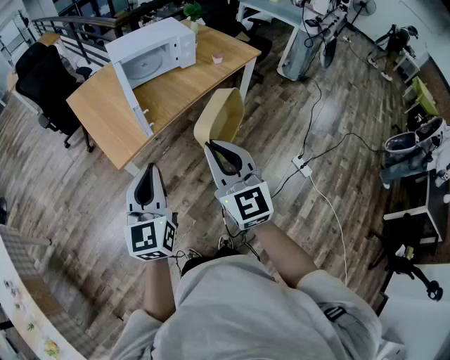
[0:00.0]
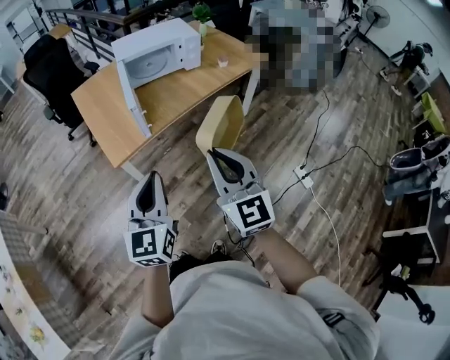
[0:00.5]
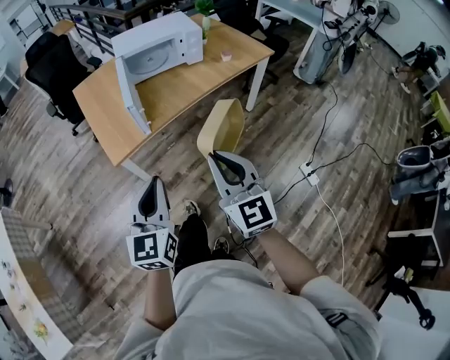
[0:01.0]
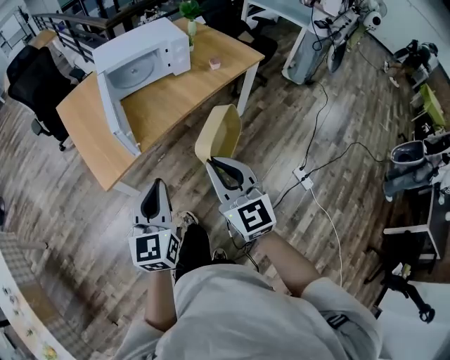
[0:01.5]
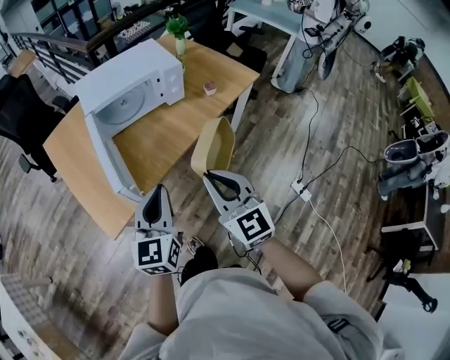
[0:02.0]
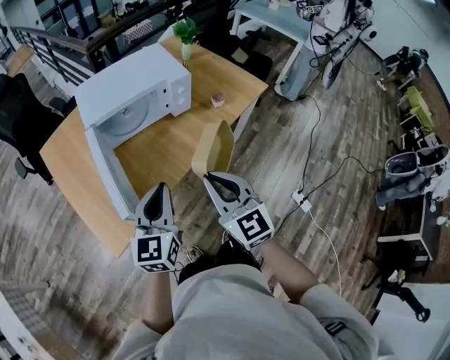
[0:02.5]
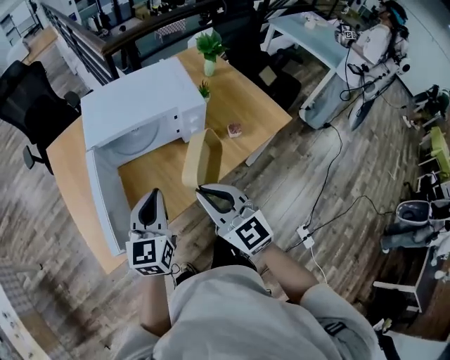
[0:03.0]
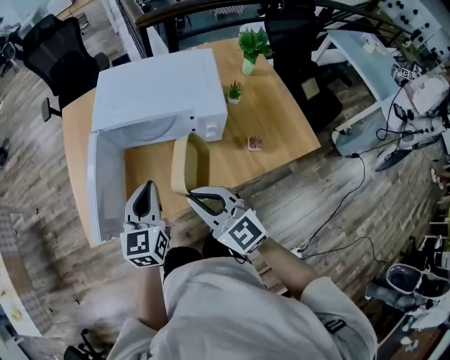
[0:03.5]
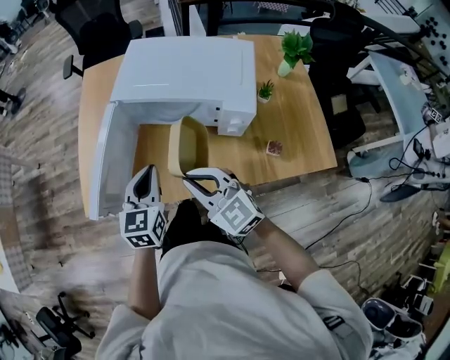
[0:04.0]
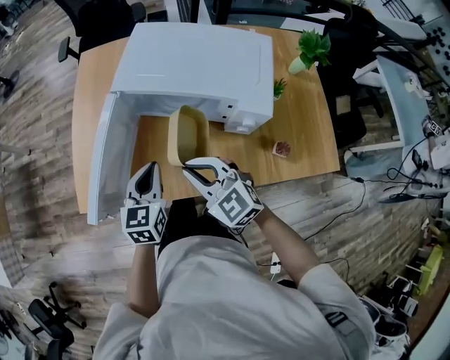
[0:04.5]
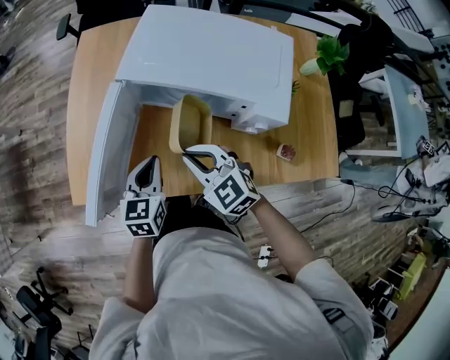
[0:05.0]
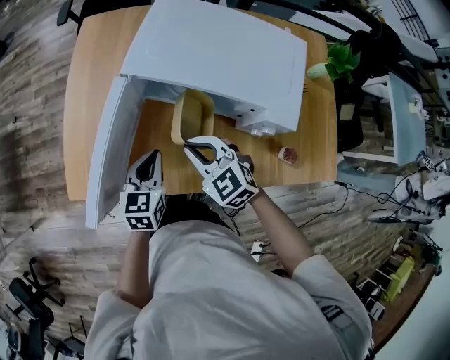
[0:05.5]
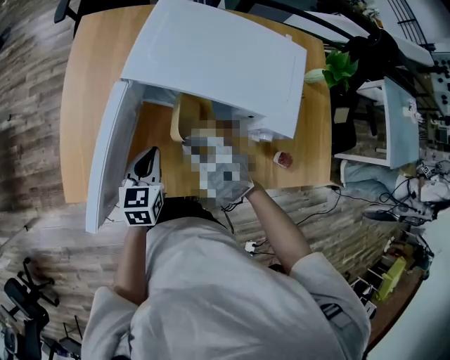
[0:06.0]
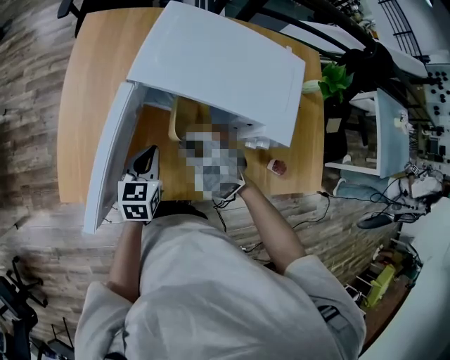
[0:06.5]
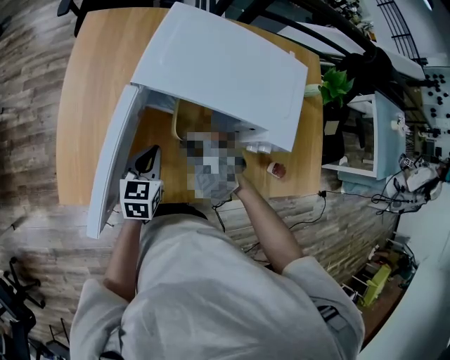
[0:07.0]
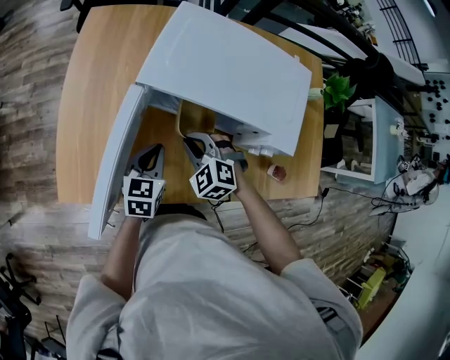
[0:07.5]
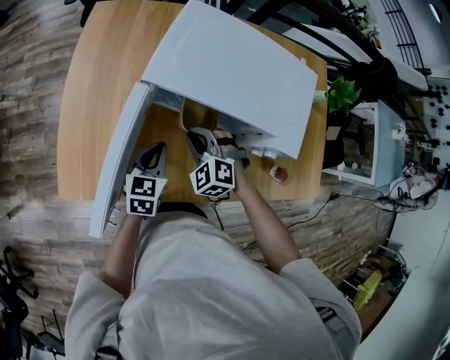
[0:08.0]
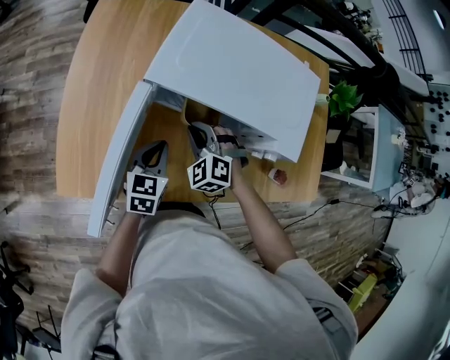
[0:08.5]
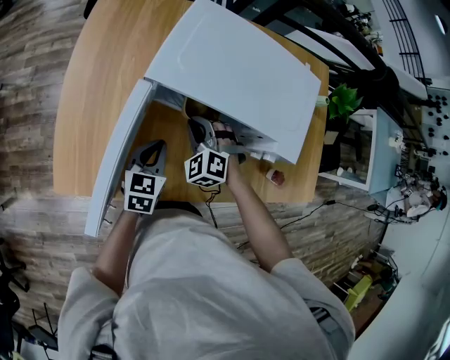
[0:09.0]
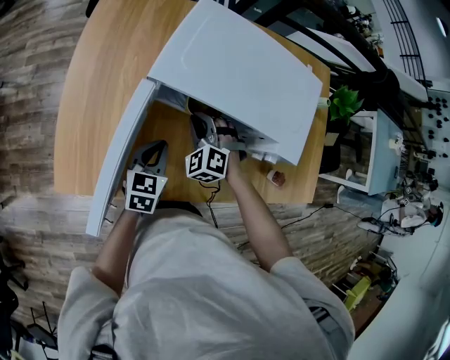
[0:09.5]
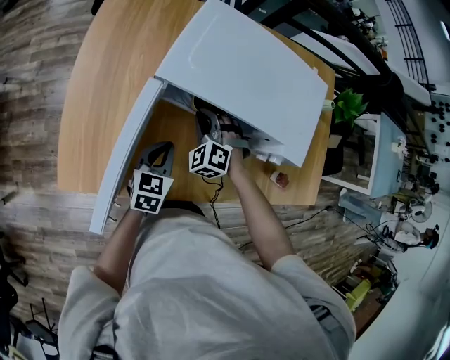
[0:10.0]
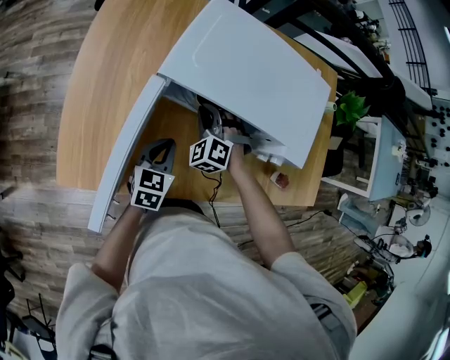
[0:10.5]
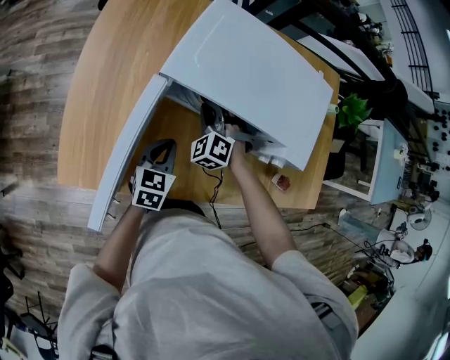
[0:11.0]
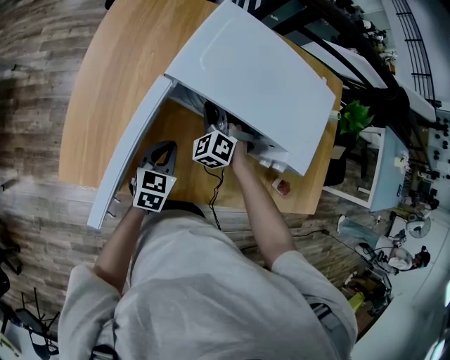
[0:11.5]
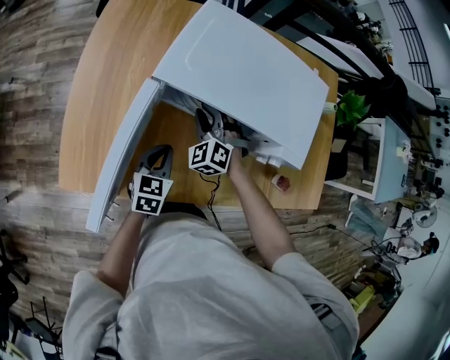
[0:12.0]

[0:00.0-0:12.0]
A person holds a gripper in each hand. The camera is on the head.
0:00.0 to 0:02.0: The two grippers go about 25 cm forward.
0:02.0 to 0:04.0: The left gripper shifts by some 25 cm, and rotates about 40 degrees, while the right gripper ends up approximately 30 cm from where it was, and turns by some 60 degrees.
0:04.0 to 0:06.0: The right gripper shifts some 20 cm forward and downward, and changes its angle by some 30 degrees; the left gripper moves downward and forward, approximately 15 cm.
0:06.0 to 0:08.0: The right gripper travels forward and downward by roughly 5 cm, and changes its angle by approximately 30 degrees.
0:08.0 to 0:10.0: The right gripper heads forward, covering about 5 cm.
0:10.0 to 0:12.0: The grippers move only a little.

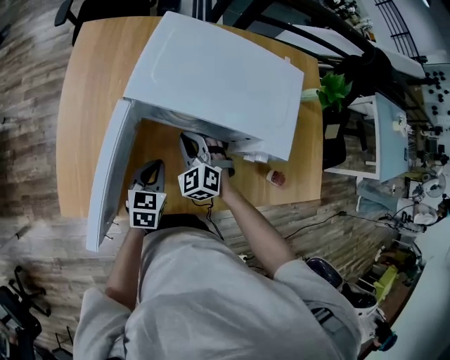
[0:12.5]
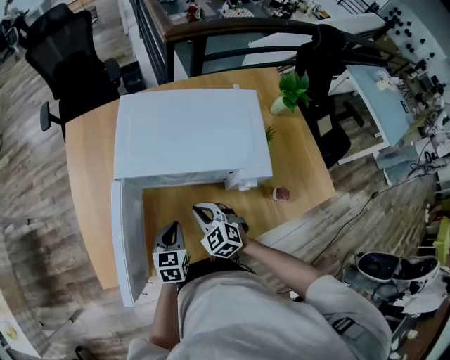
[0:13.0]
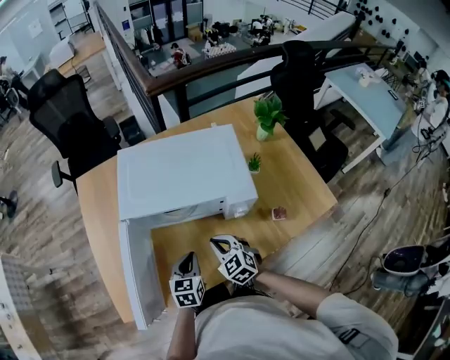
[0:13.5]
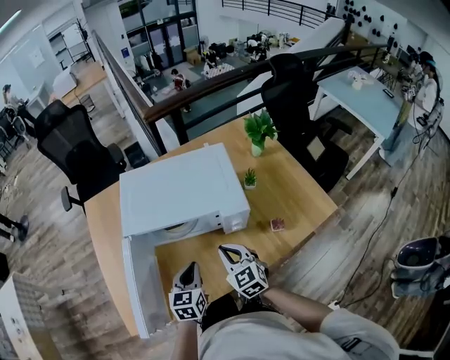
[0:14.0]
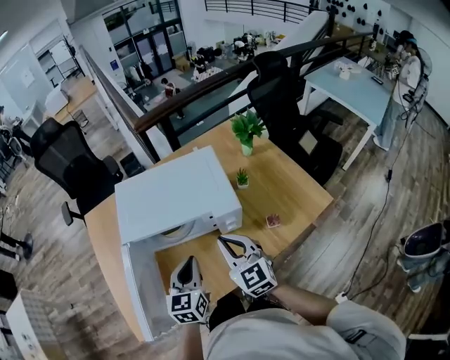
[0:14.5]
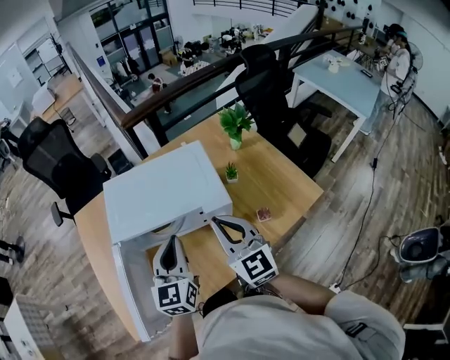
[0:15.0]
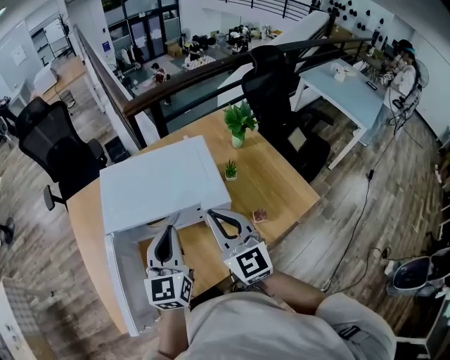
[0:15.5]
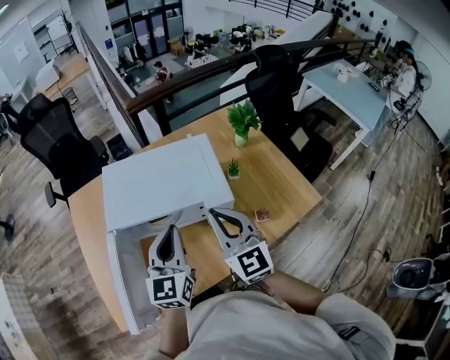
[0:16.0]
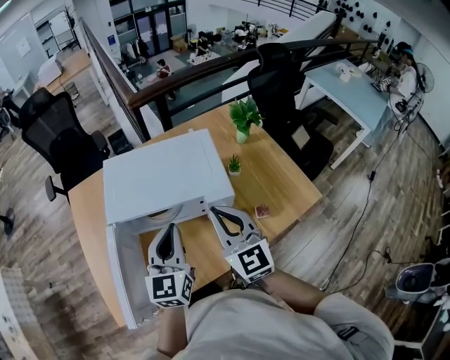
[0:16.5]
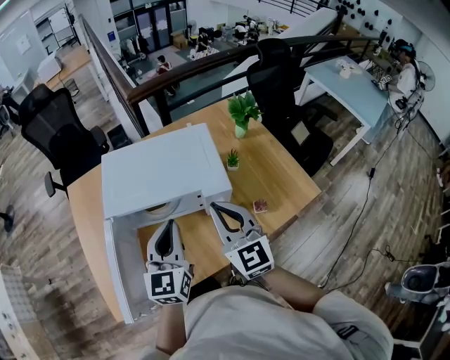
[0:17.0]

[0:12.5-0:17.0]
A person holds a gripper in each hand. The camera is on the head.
0:12.5 to 0:14.5: The left gripper heads upward and to the right, covering approximately 20 cm, and turns by about 20 degrees; the right gripper goes about 30 cm upward, to the right and backward, and changes its angle by roughly 50 degrees.
0:14.5 to 0:17.0: Both grippers travel together upward, approximately 10 cm.

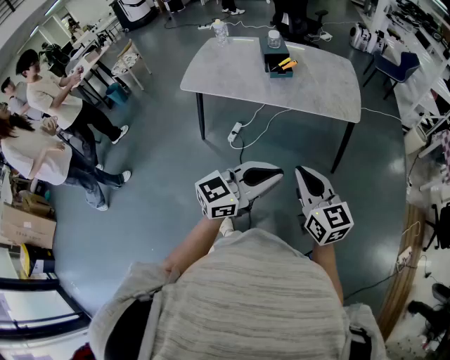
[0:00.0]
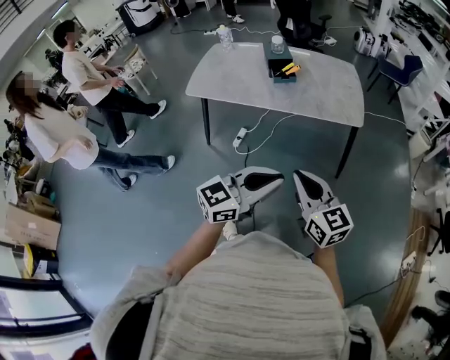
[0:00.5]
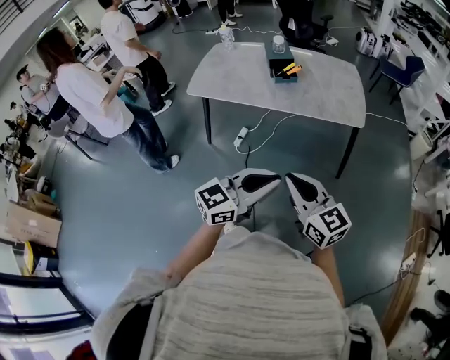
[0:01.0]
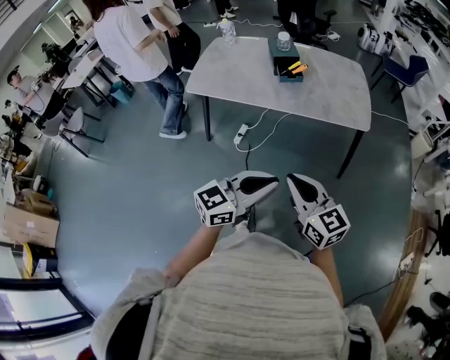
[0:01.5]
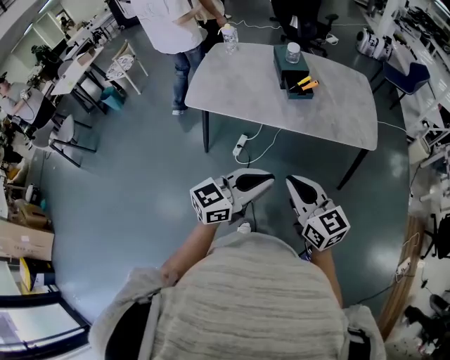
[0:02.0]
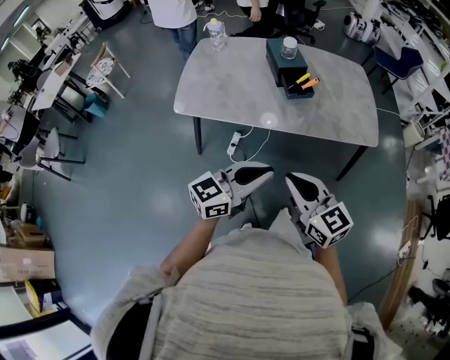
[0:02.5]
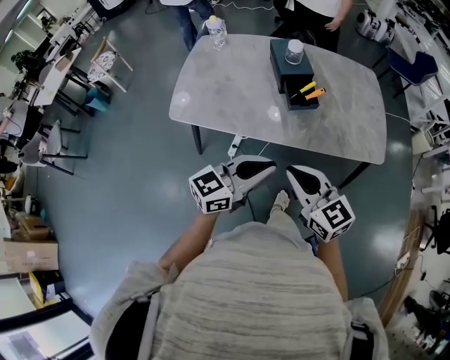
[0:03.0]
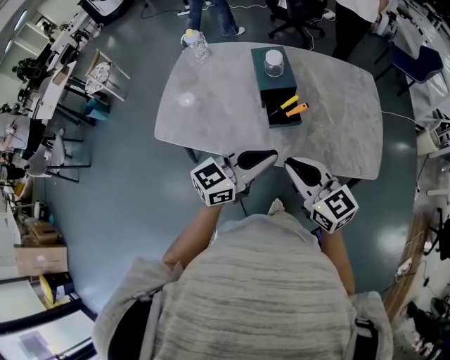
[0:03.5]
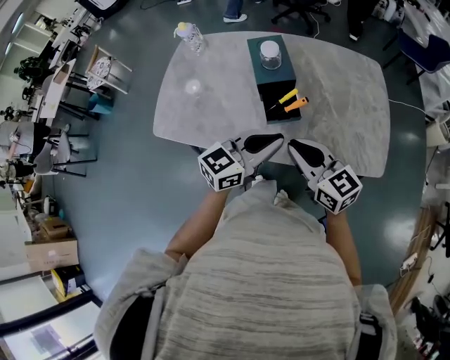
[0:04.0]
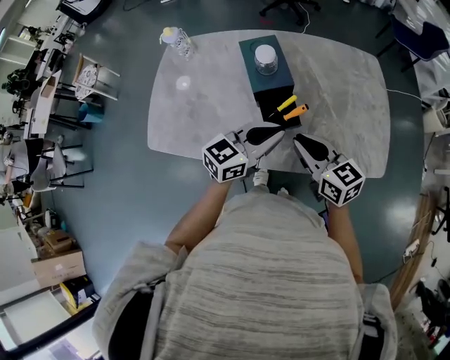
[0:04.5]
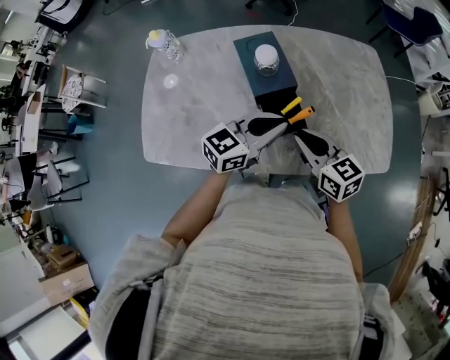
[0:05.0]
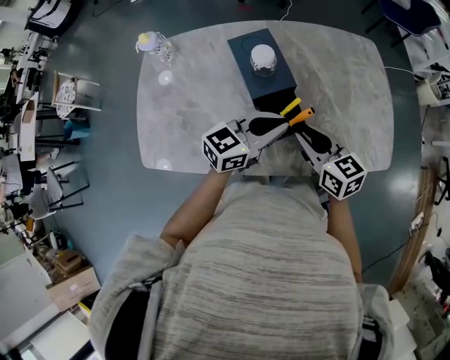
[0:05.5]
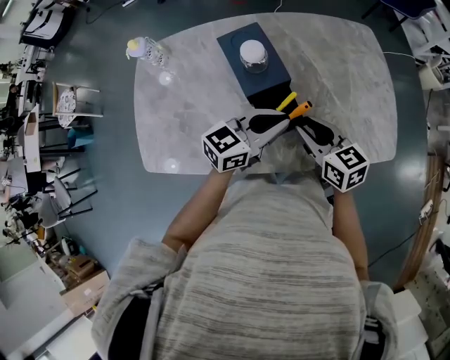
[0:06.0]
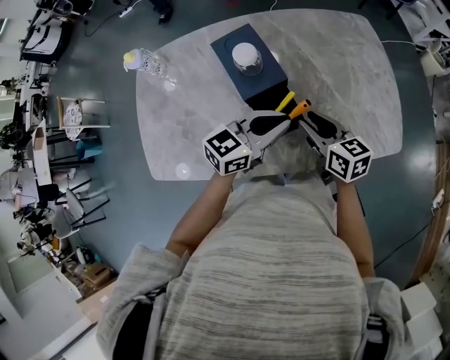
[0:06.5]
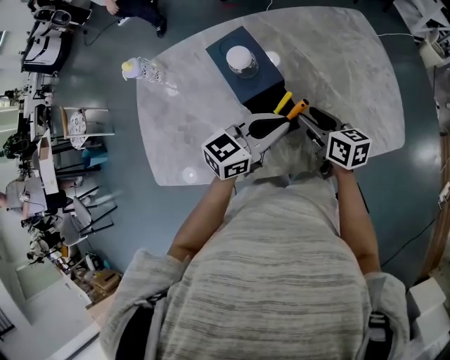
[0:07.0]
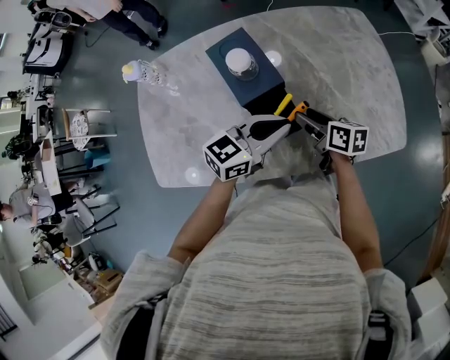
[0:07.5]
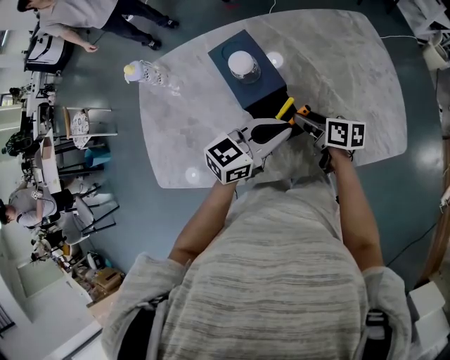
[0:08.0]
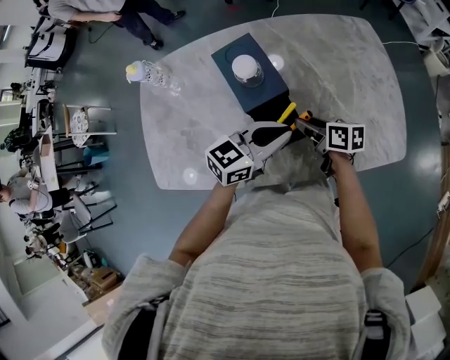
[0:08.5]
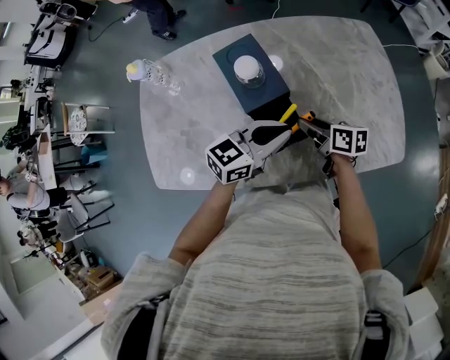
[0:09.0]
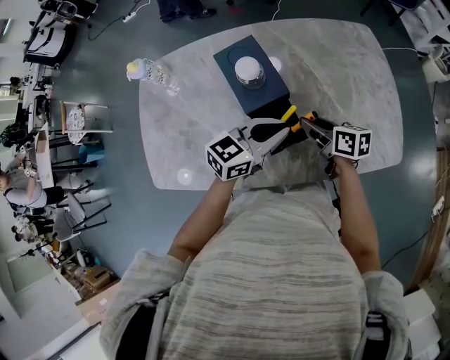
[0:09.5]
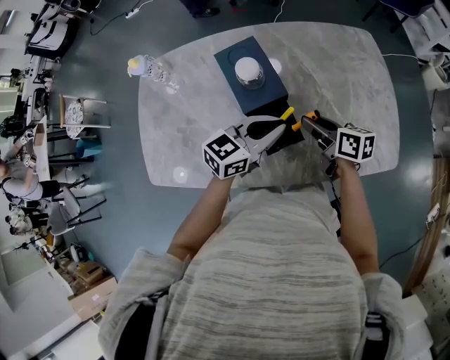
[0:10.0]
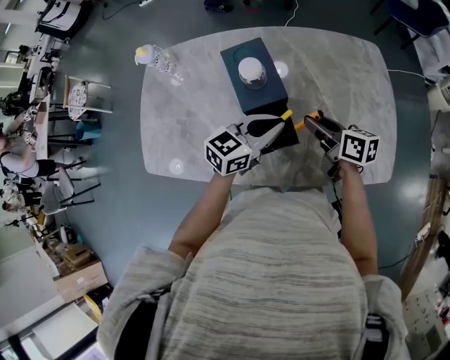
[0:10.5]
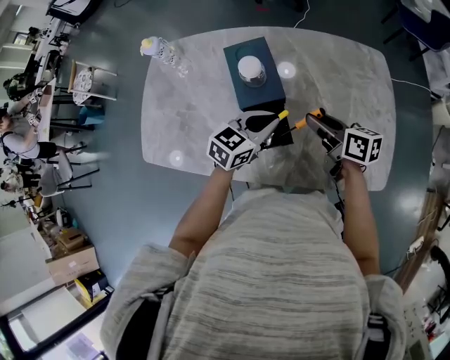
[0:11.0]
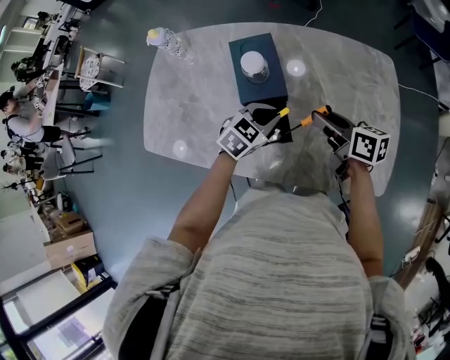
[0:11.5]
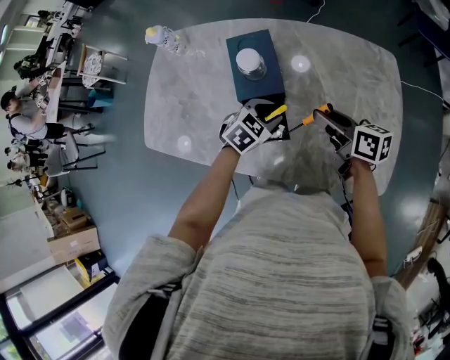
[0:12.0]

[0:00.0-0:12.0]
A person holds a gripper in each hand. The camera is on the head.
0:00.0 to 0:02.0: Both grippers travel together to the left and forward, roughly 20 cm.
0:02.0 to 0:04.0: The two grippers travel together, forward, approximately 40 cm.
0:04.0 to 0:06.0: The grippers both shift forward and downward by about 15 cm. The right gripper swivels roughly 30 degrees.
0:06.0 to 0:08.0: The right gripper travels downward and forward by some 10 cm, rotates approximately 40 degrees, and opens up.
0:08.0 to 0:10.0: The right gripper moves upward, approximately 5 cm.
0:10.0 to 0:12.0: The right gripper is displaced to the right by some 5 cm, while the left gripper heads downward, covering about 10 cm, angles its fingers downward, by some 40 degrees, and opens up.
